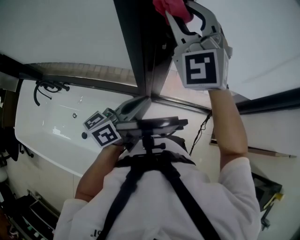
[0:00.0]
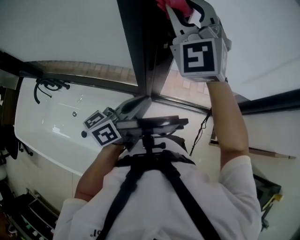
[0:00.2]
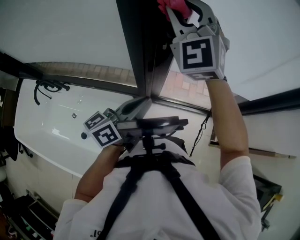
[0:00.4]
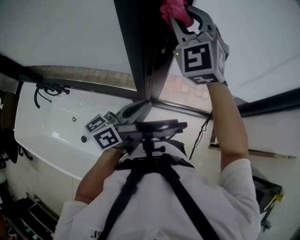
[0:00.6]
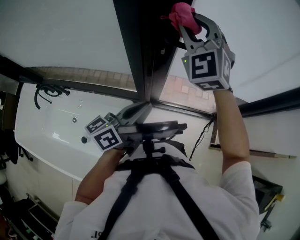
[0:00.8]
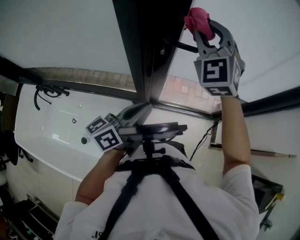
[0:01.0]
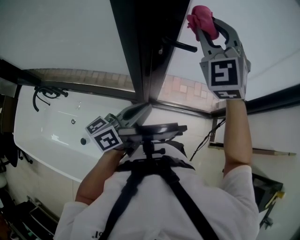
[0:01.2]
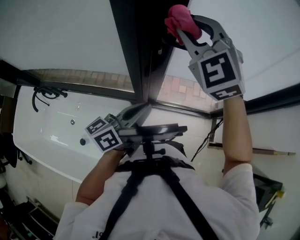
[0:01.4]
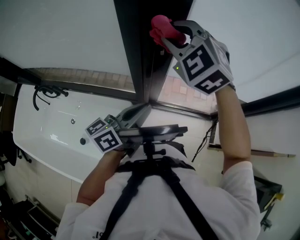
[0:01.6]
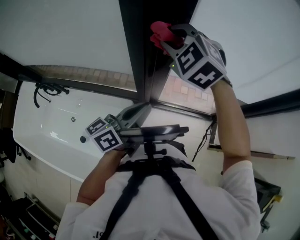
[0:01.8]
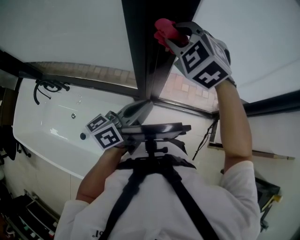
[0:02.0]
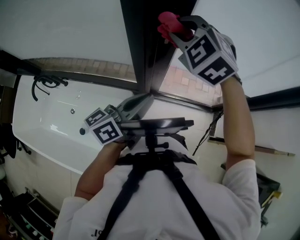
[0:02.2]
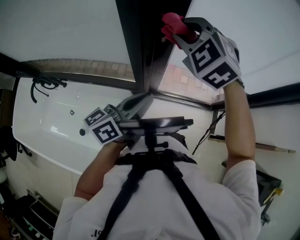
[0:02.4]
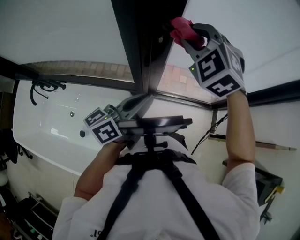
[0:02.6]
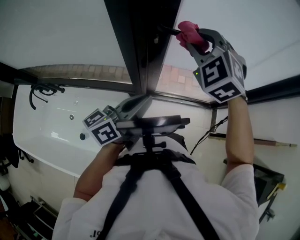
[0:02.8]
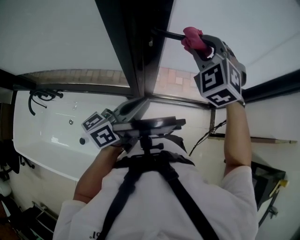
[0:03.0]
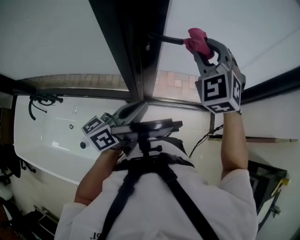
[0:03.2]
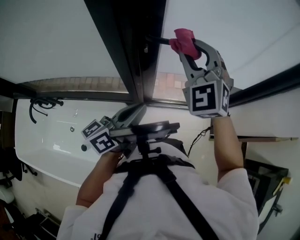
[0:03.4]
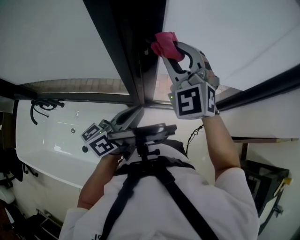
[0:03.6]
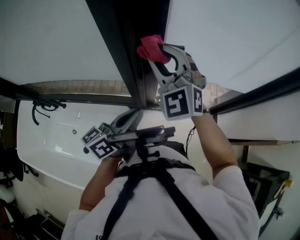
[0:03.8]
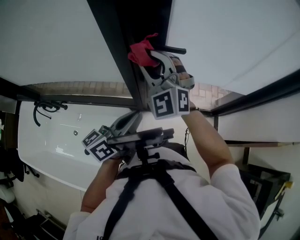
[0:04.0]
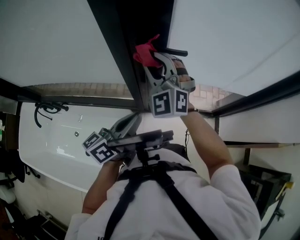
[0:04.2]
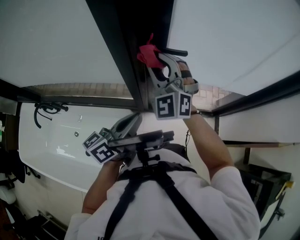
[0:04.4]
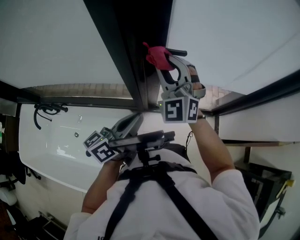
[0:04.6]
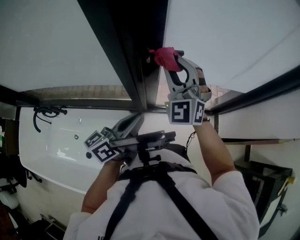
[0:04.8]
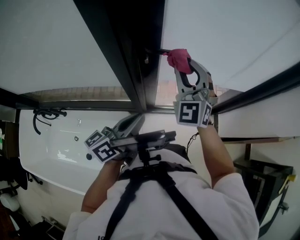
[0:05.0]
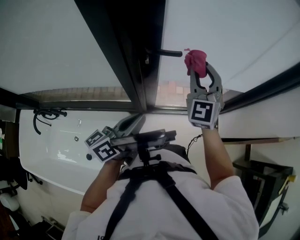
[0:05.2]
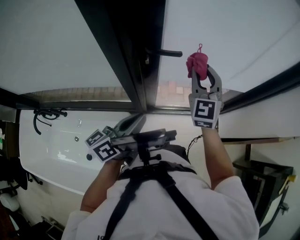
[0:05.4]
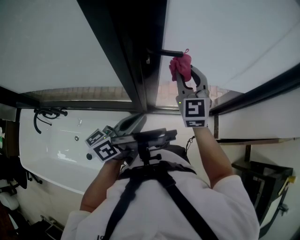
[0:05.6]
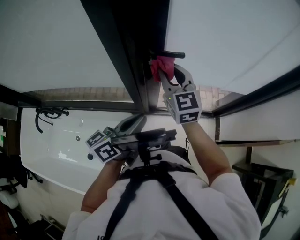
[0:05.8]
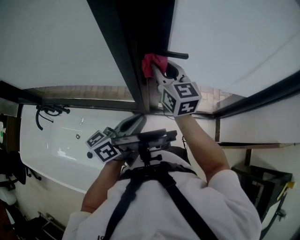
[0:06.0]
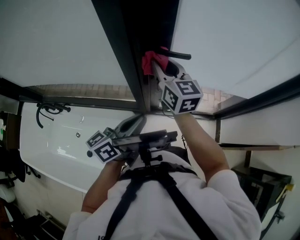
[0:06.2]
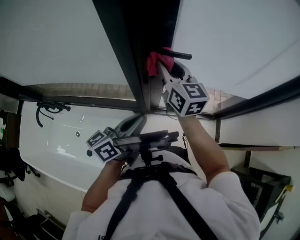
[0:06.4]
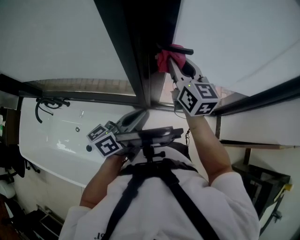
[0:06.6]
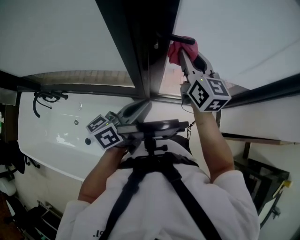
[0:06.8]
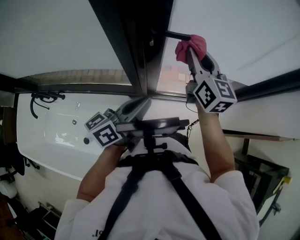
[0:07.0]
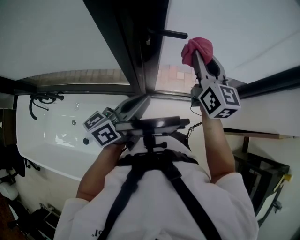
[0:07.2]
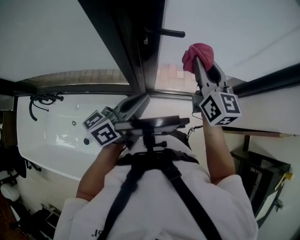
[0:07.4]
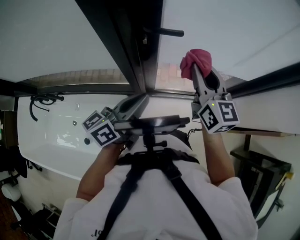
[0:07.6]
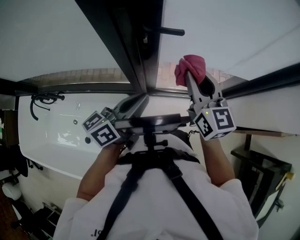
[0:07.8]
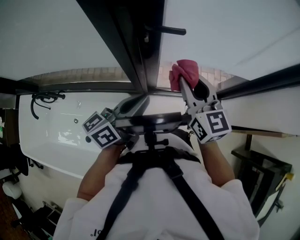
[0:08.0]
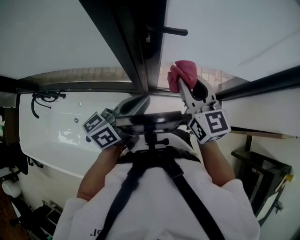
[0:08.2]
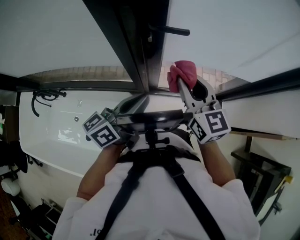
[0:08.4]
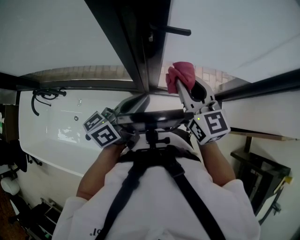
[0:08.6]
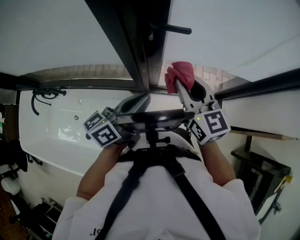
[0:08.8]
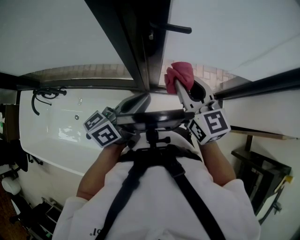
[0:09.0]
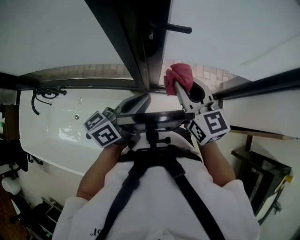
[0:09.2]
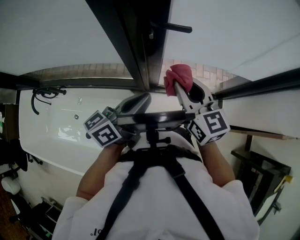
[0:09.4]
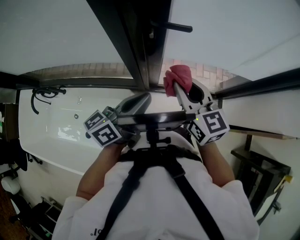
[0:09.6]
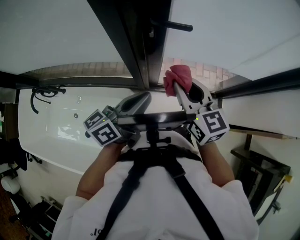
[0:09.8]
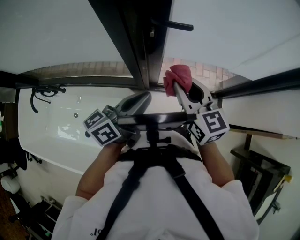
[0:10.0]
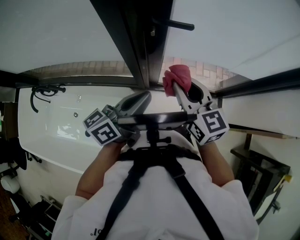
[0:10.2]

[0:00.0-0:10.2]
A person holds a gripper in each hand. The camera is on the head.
0:00.0 to 0:01.4: The right gripper moves roughly 10 cm to the right and comes back.
0:01.4 to 0:03.0: The right gripper is displaced downward and to the right by roughly 15 cm, and changes its angle by some 20 degrees.
0:03.0 to 0:04.4: The right gripper travels to the left by approximately 10 cm, and turns by approximately 30 degrees.
0:04.4 to 0:05.8: The right gripper moves some 15 cm to the right and comes back, and rotates around the line of its fingers by approximately 40 degrees, clockwise from behind.
0:05.8 to 0:07.2: The right gripper shifts about 10 cm to the right.
0:07.2 to 0:08.8: The right gripper shifts about 10 cm backward and downward.
0:08.8 to 0:10.2: The grippers move only a little.

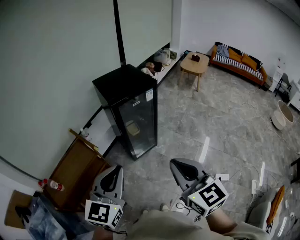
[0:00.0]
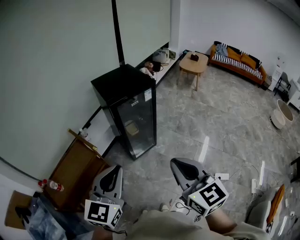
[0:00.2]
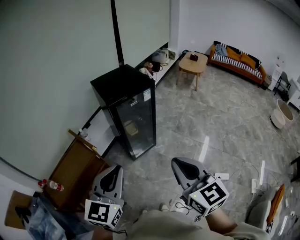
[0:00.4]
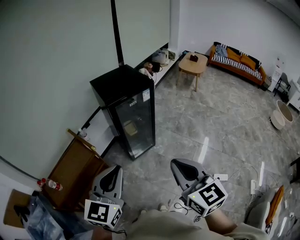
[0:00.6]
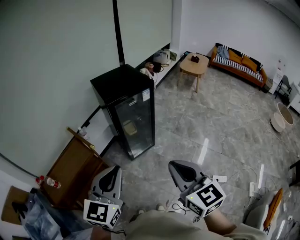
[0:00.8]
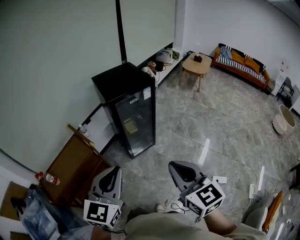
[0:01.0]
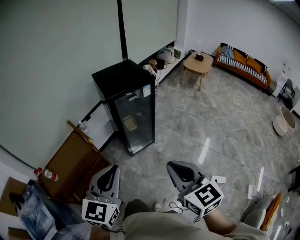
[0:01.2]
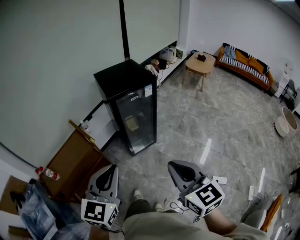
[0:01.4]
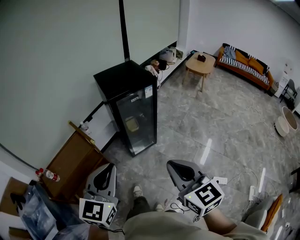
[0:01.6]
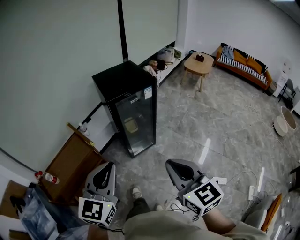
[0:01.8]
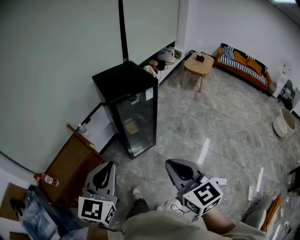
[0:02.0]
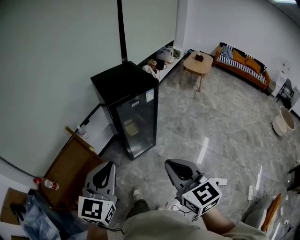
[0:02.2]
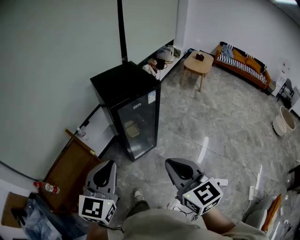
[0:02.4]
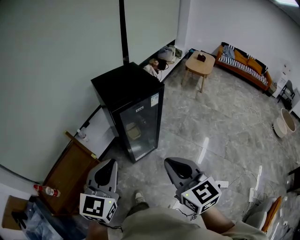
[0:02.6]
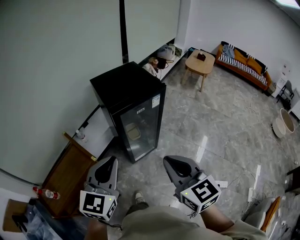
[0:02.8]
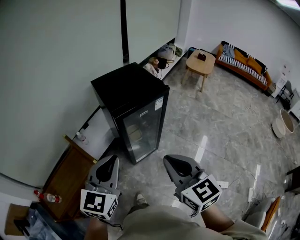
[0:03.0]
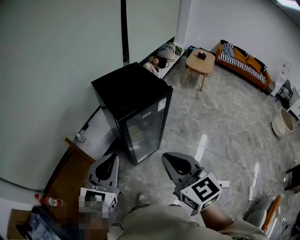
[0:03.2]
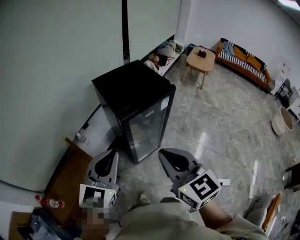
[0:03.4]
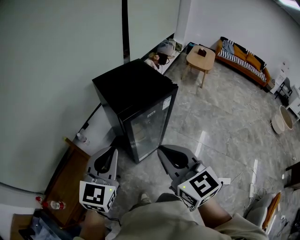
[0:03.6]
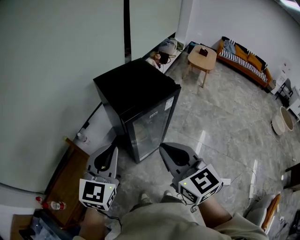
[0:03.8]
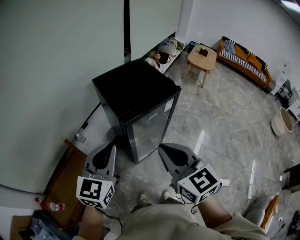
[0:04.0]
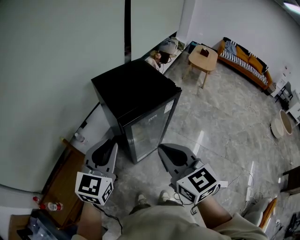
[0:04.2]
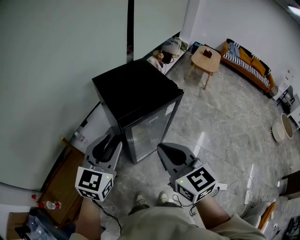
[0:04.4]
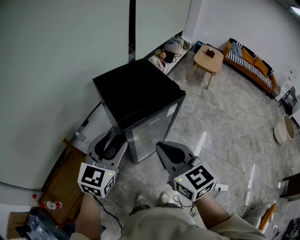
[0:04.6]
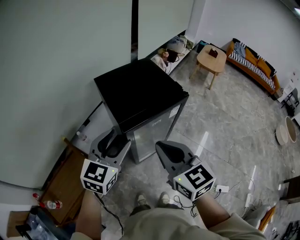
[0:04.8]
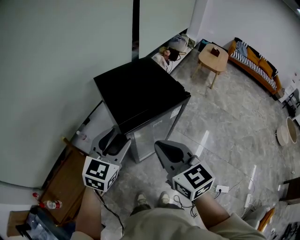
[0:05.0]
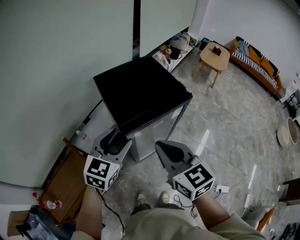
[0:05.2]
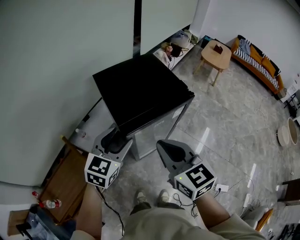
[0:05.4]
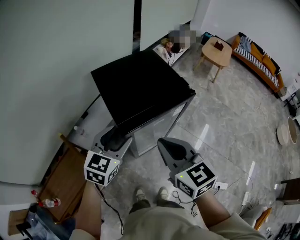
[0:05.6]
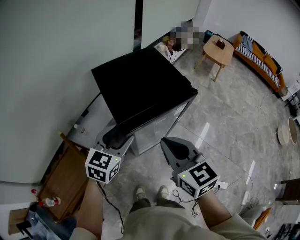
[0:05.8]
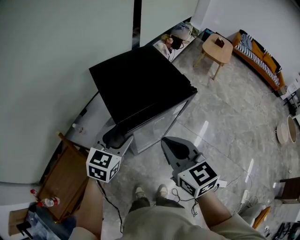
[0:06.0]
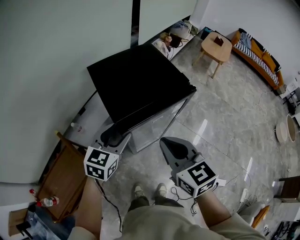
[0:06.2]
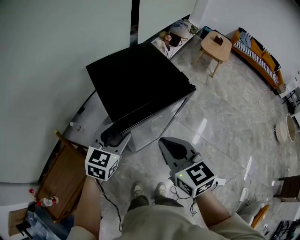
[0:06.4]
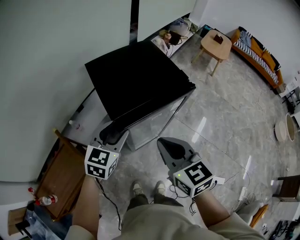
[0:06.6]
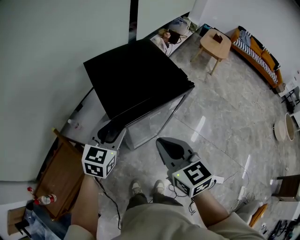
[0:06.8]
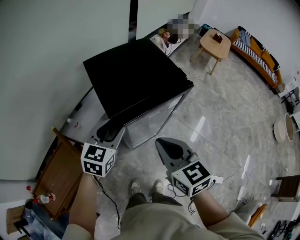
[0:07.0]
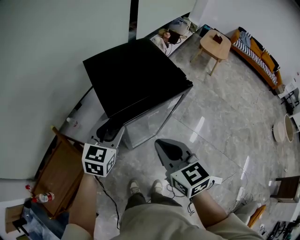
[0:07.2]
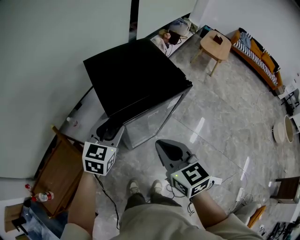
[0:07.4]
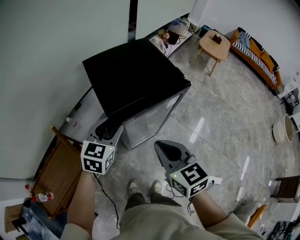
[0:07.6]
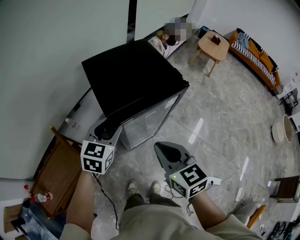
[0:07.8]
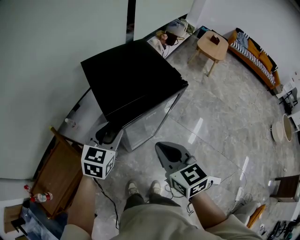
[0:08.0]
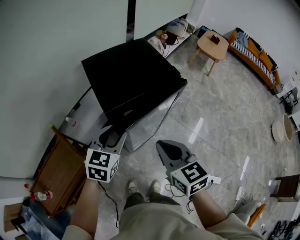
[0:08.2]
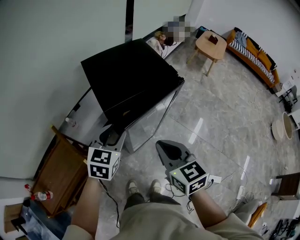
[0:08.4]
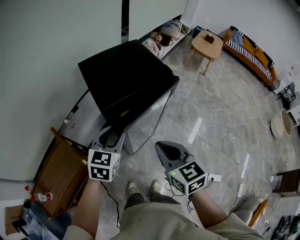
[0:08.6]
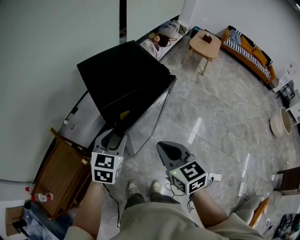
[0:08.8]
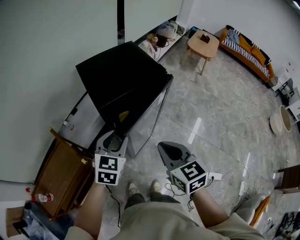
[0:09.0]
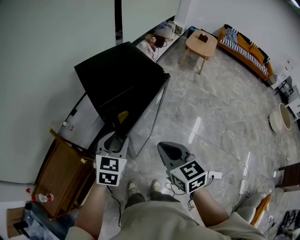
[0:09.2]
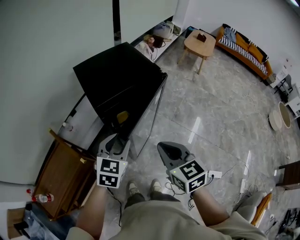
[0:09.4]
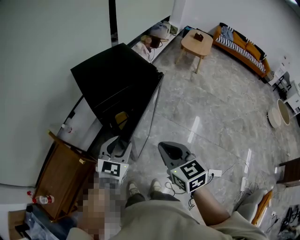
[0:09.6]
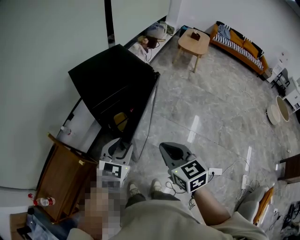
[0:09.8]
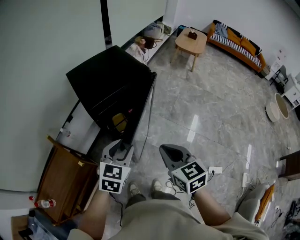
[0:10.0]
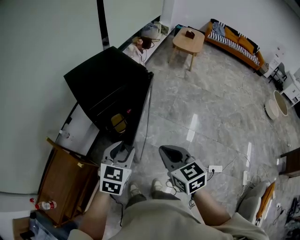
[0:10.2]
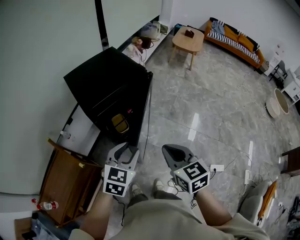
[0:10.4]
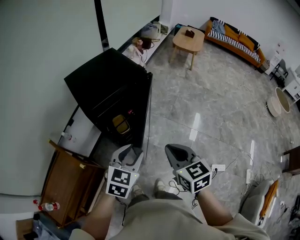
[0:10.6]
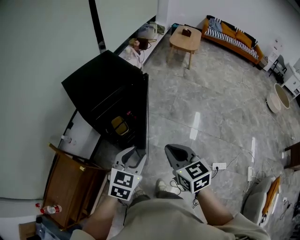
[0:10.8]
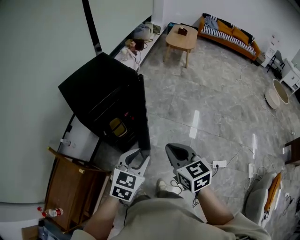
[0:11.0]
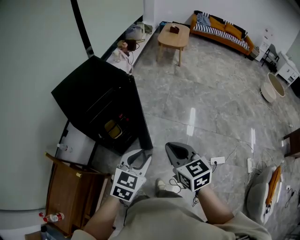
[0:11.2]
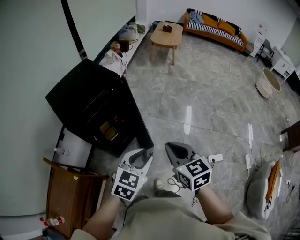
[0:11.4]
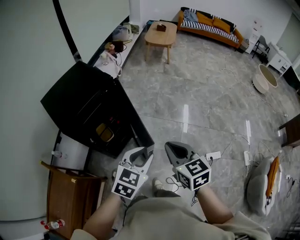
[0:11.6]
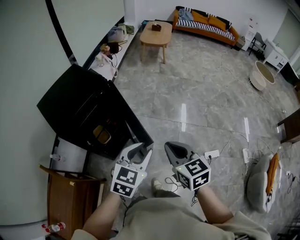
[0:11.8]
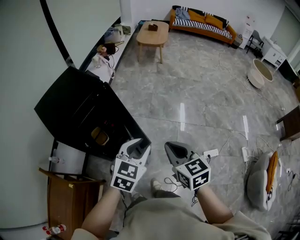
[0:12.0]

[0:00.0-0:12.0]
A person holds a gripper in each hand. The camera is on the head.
0:00.0 to 0:01.6: The right gripper moves approximately 5 cm.
0:01.6 to 0:03.0: Both grippers travel together forward, approximately 20 cm.
0:03.0 to 0:04.4: The right gripper moves forward and to the left, about 15 cm. Meanwhile the left gripper travels forward by approximately 15 cm, and opens up.
0:04.4 to 0:06.0: The right gripper is displaced forward and downward by roughly 10 cm. Meanwhile the left gripper moves downward and forward, about 15 cm, and opens its fingers.
0:06.0 to 0:07.6: The grippers move only a little.
0:07.6 to 0:09.0: The grippers both shift backward and to the right by roughly 10 cm.
0:09.0 to 0:10.4: Both grippers move to the right and backward, some 10 cm.
0:10.4 to 0:12.0: Both grippers move to the right, about 20 cm. The left gripper swivels about 20 degrees.

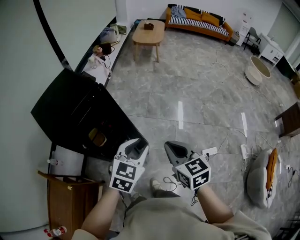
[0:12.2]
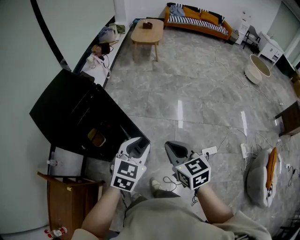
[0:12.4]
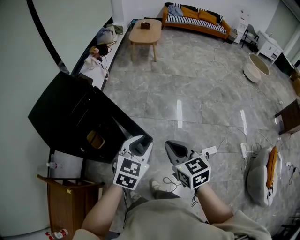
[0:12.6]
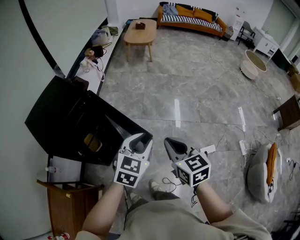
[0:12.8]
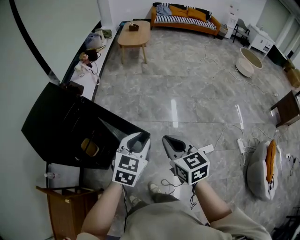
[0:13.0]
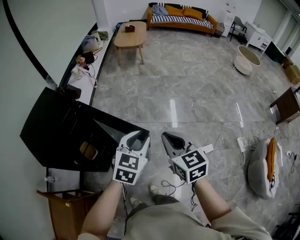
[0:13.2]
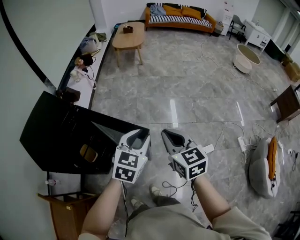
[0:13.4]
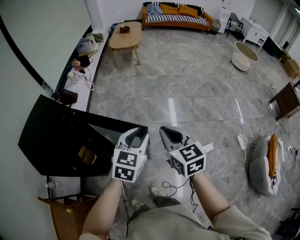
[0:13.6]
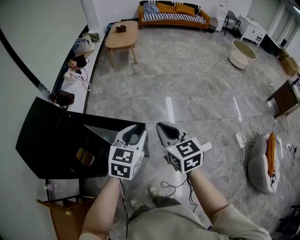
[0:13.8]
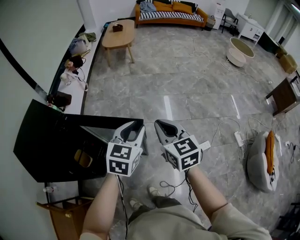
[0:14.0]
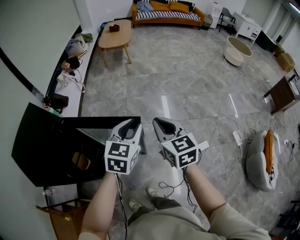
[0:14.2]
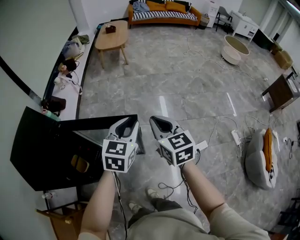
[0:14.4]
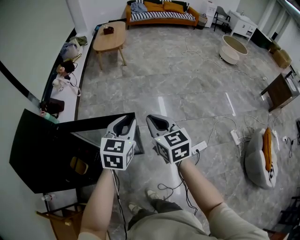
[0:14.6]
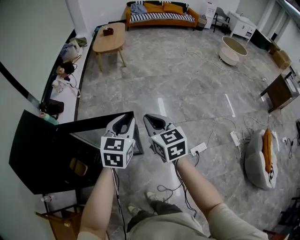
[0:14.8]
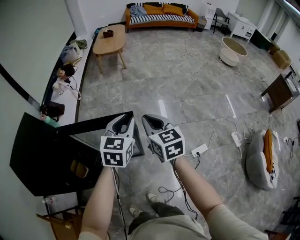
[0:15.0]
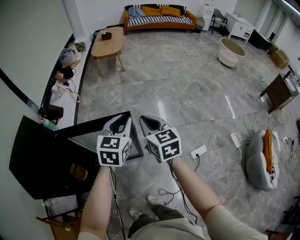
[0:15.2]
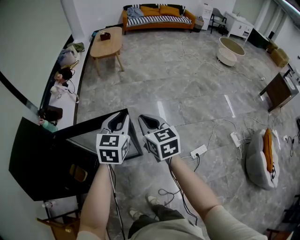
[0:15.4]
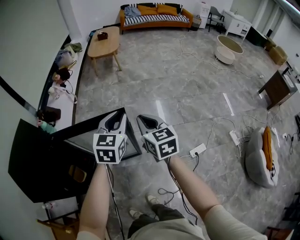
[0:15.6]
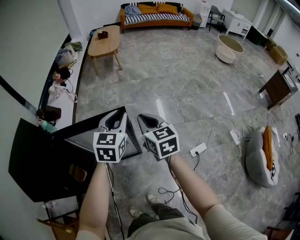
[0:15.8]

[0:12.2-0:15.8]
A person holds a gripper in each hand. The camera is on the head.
0:12.2 to 0:14.0: The grippers both shift forward and to the right by approximately 20 cm.
0:14.0 to 0:15.8: Both grippers move forward, some 10 cm.
